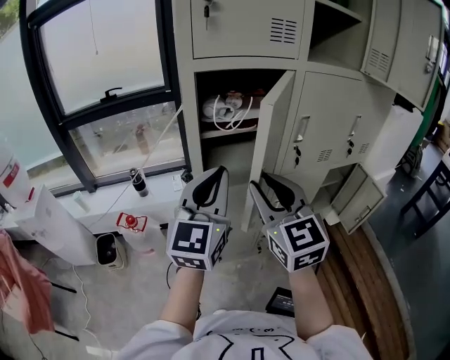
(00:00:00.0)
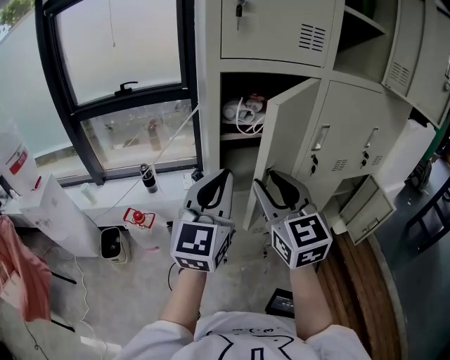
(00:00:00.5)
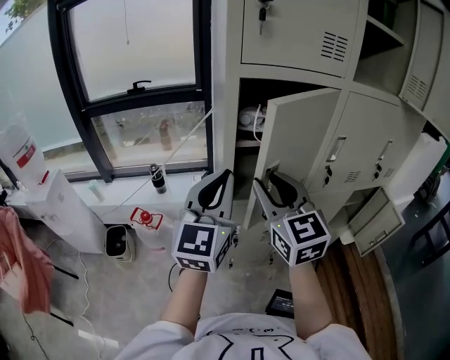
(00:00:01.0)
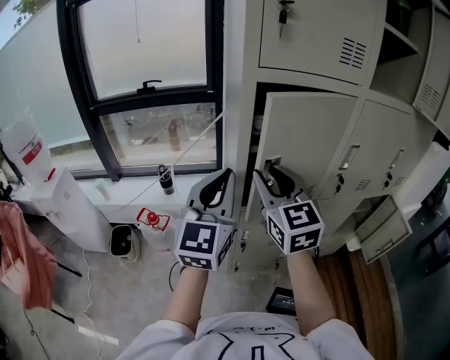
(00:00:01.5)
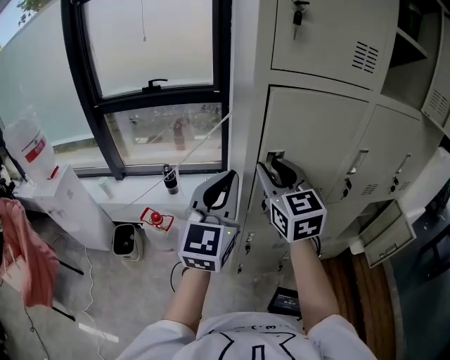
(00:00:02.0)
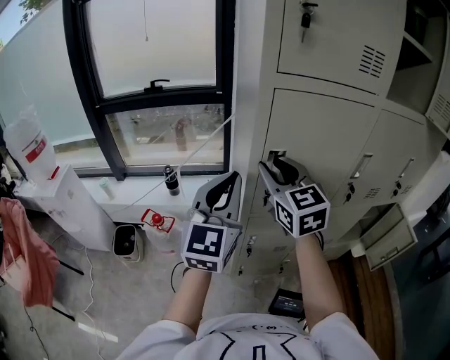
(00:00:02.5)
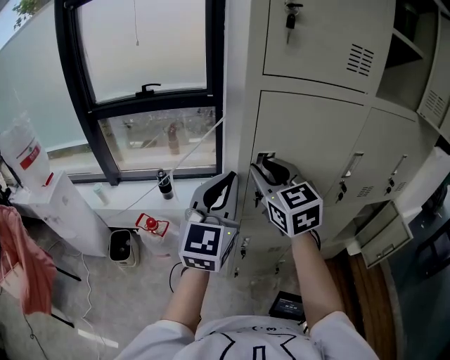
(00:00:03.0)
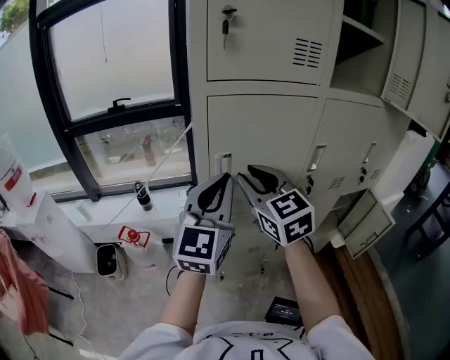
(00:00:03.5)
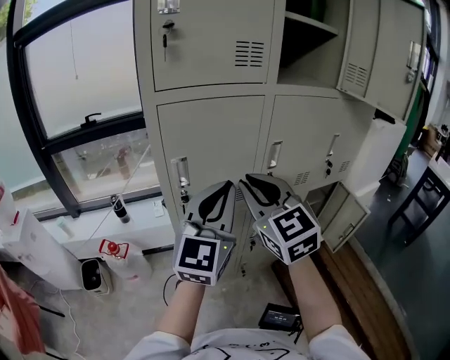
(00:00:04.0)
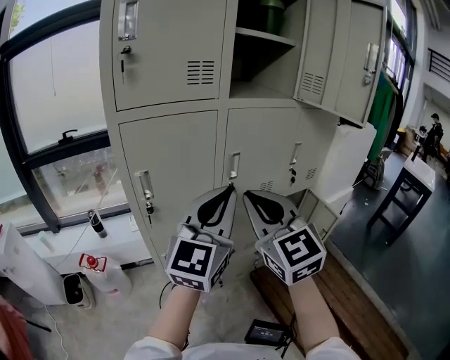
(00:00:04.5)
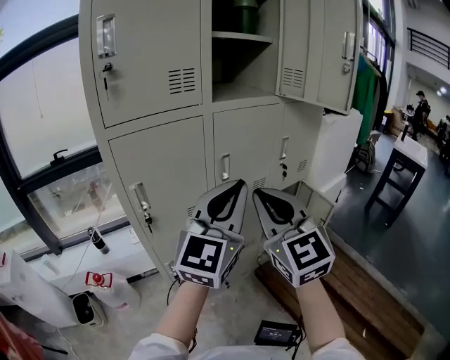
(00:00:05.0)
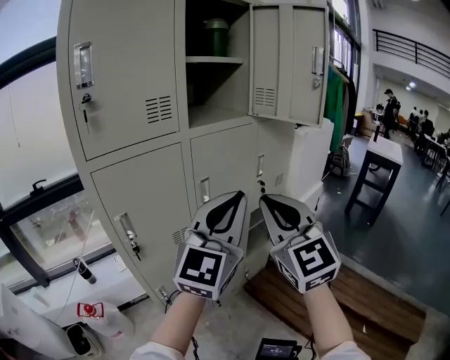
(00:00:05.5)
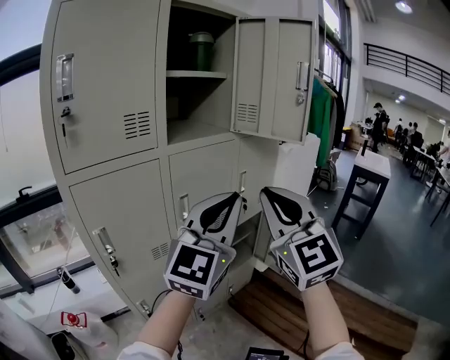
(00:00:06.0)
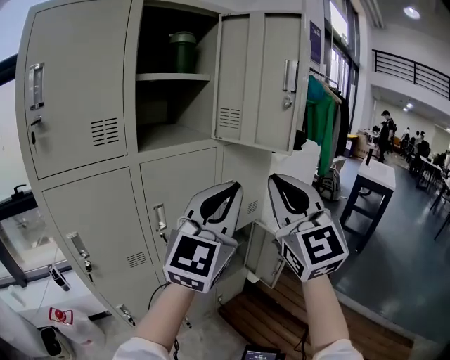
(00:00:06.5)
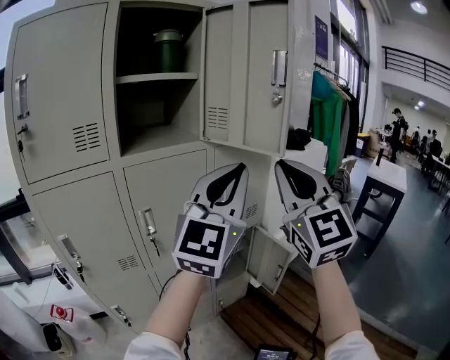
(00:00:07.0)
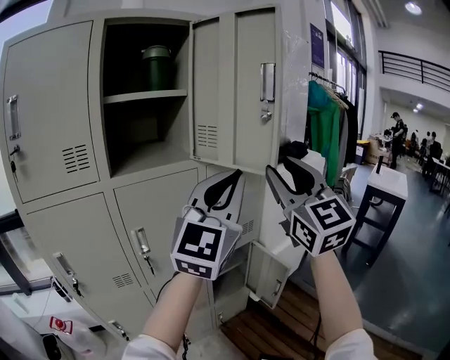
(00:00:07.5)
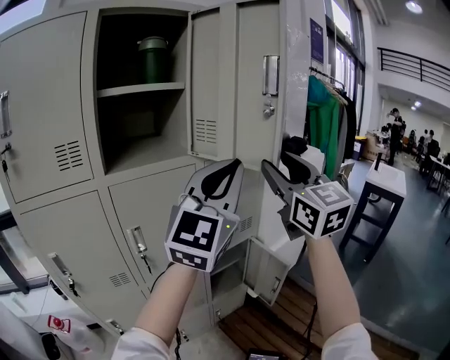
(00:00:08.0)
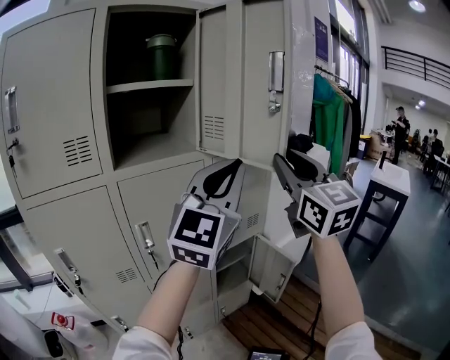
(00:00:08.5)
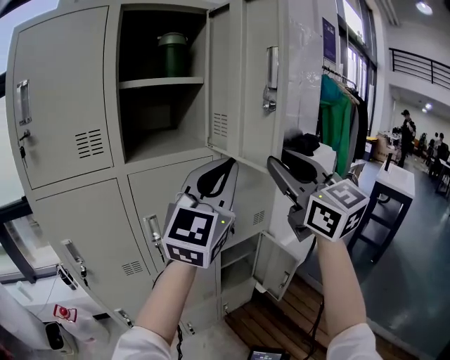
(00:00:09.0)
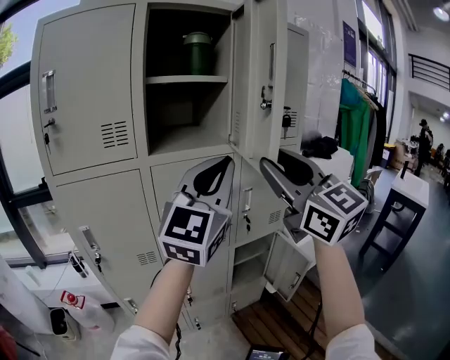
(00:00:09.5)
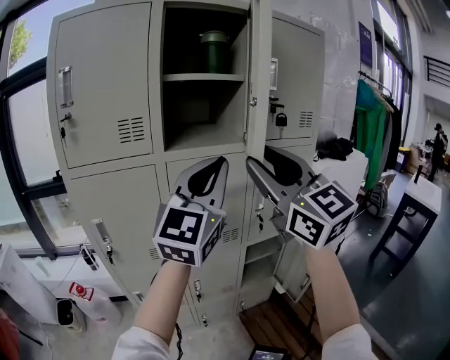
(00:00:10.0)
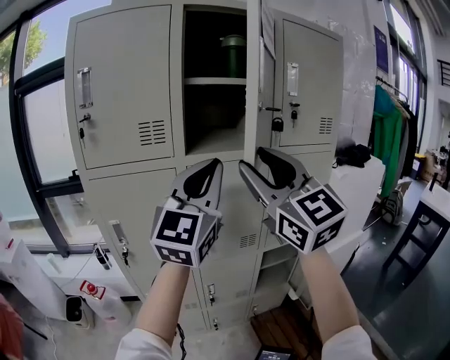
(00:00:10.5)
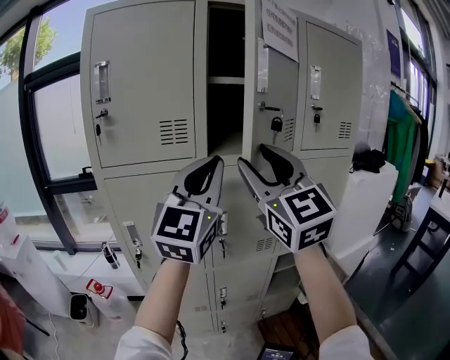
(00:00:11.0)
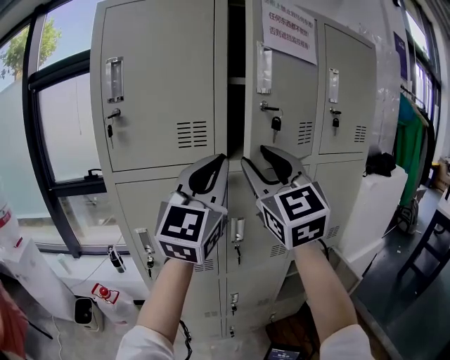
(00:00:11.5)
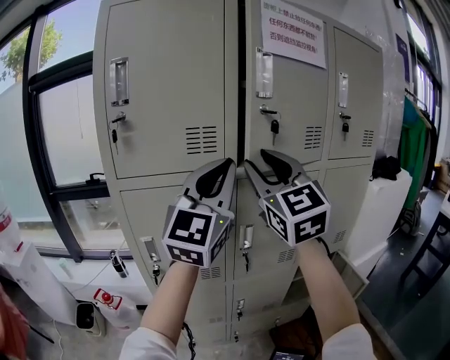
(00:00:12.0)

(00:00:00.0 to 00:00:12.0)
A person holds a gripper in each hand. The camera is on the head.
00:00:00.0 - 00:00:02.0: The right gripper moves forward and to the left, roughly 20 cm. The left gripper moves to the left and forward, approximately 10 cm.
00:00:02.0 - 00:00:04.0: The right gripper moves to the right and backward, about 20 cm. Meanwhile the left gripper goes some 20 cm to the right.
00:00:04.0 - 00:00:06.0: The left gripper changes place by about 25 cm, and changes its angle by some 30 degrees. Meanwhile the right gripper shifts by some 30 cm, and changes its angle by approximately 30 degrees.
00:00:06.0 - 00:00:08.0: The left gripper travels forward, to the right and upward by about 25 cm; the right gripper heads forward and to the right, covering approximately 30 cm, and opens up.
00:00:08.0 - 00:00:10.0: The right gripper is displaced to the left and backward by about 20 cm, and turns by approximately 30 degrees, while the left gripper shifts approximately 15 cm to the left.
00:00:10.0 - 00:00:12.0: Both grippers travel together to the left and forward, roughly 20 cm.

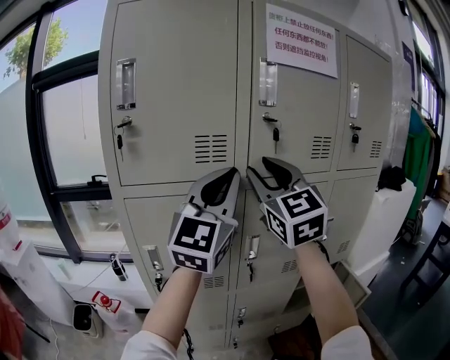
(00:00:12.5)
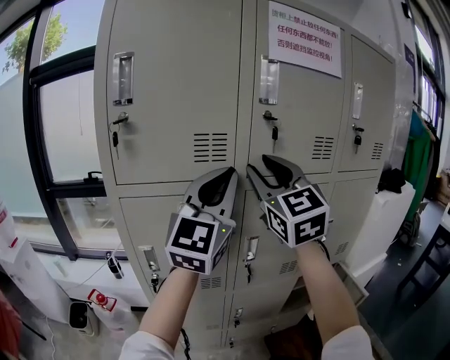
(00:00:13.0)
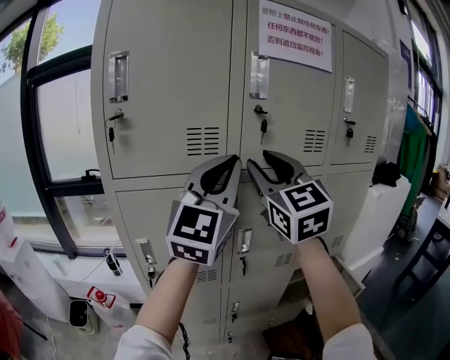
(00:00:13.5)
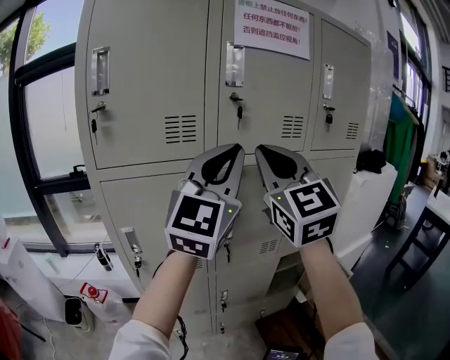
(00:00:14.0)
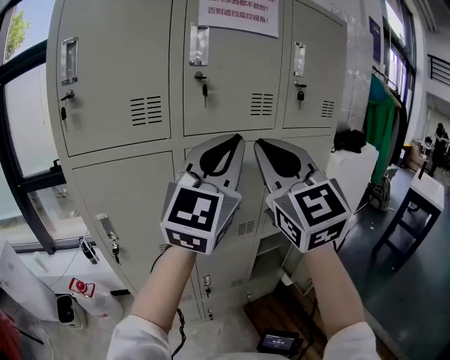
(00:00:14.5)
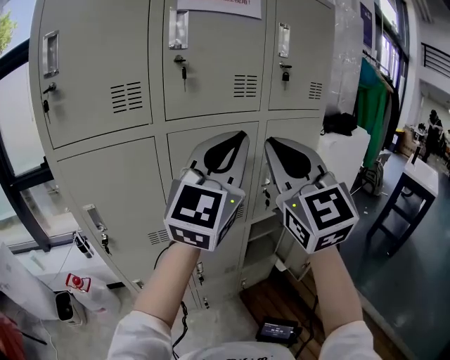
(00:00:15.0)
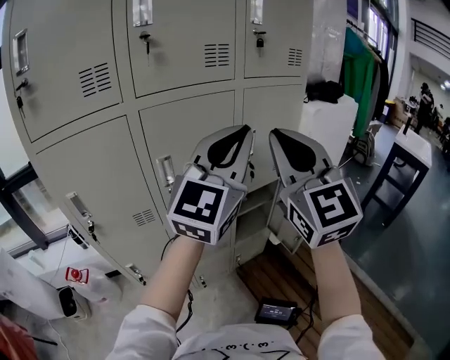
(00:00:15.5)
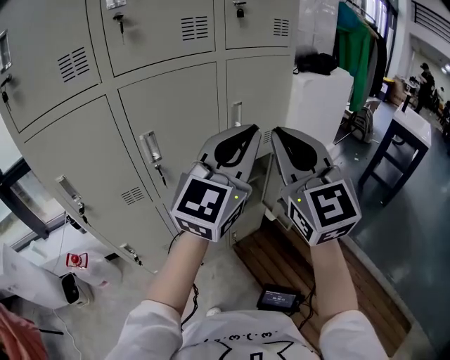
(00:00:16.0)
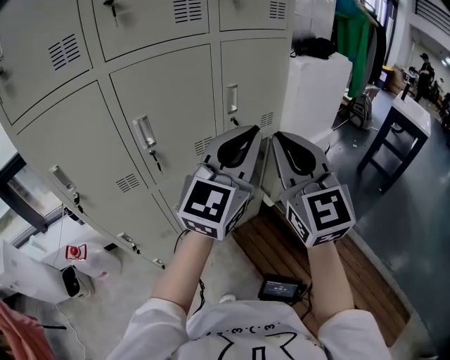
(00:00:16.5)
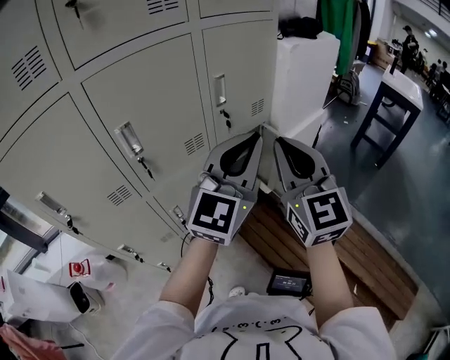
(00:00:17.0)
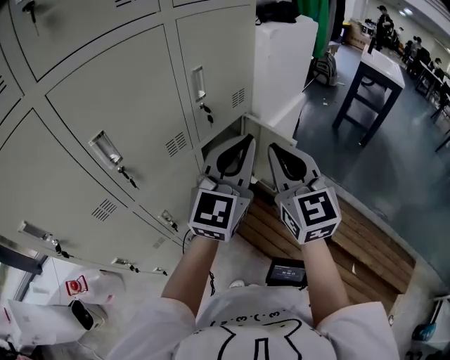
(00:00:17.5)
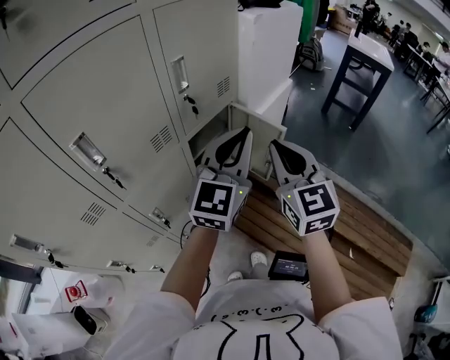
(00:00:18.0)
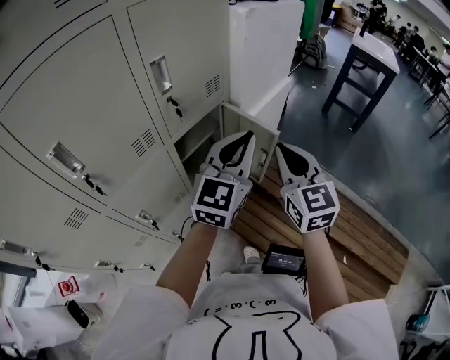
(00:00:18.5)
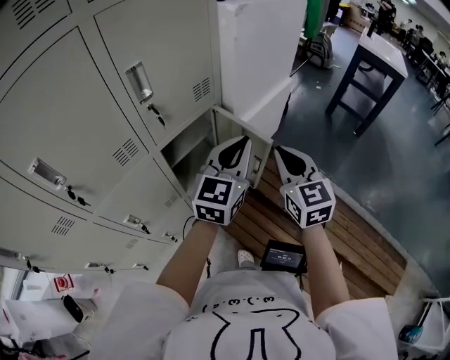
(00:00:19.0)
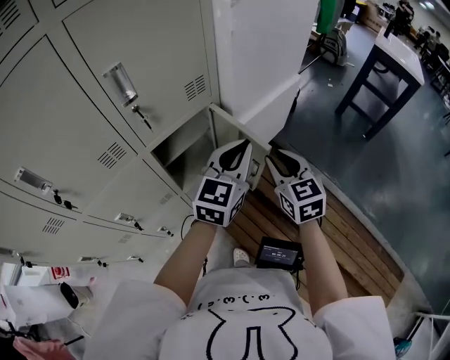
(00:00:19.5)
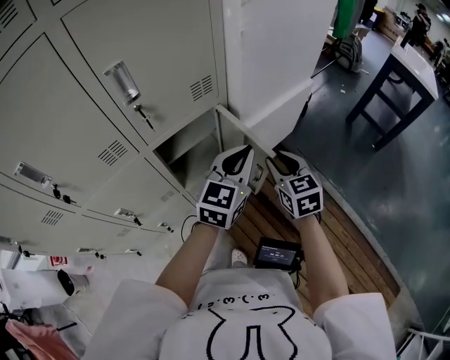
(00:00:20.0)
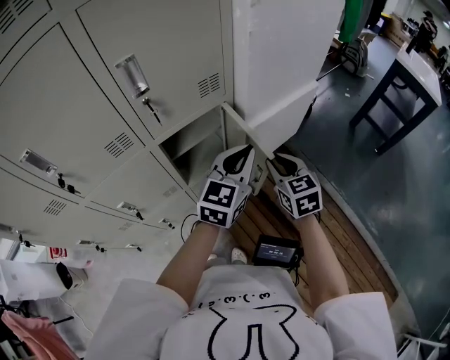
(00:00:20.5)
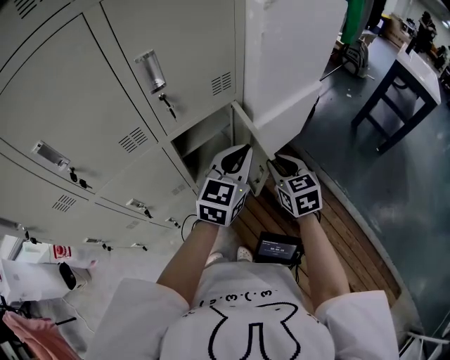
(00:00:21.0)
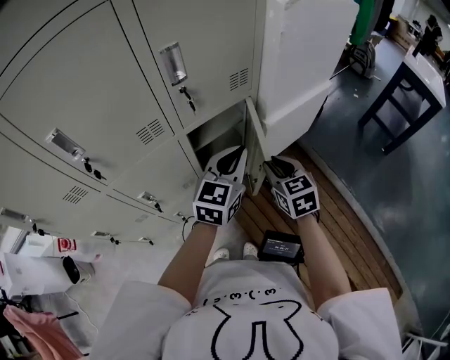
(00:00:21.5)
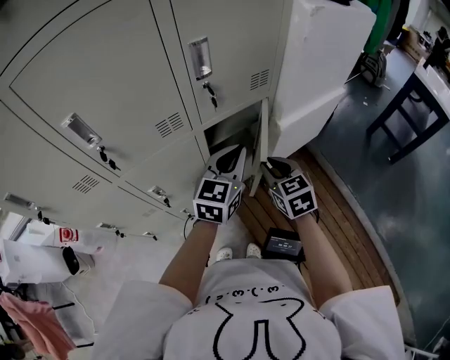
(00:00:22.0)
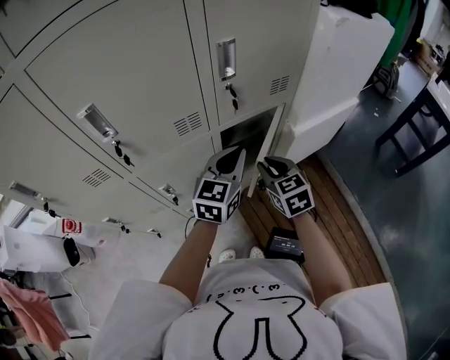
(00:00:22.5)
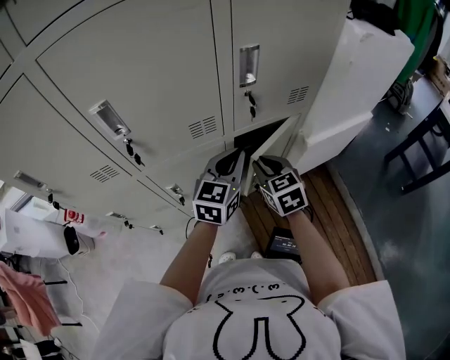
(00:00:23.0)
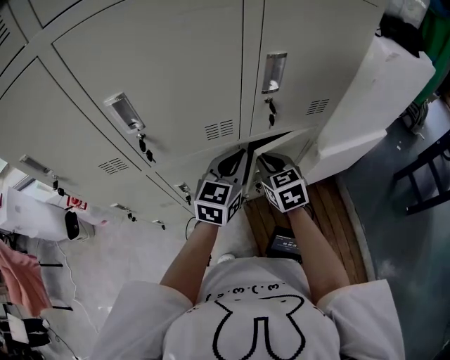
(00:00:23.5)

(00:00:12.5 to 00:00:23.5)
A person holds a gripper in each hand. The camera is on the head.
00:00:12.5 - 00:00:14.5: The grippers both shift to the right and backward by approximately 15 cm. The right gripper closes its fingers.
00:00:14.5 - 00:00:16.0: The two grippers go some 20 cm to the right and downward. The left gripper swivels some 20 degrees.
00:00:16.0 - 00:00:18.0: The left gripper shifts approximately 15 cm downward and forward, while the right gripper is displaced downward by approximately 20 cm, and swivels about 30 degrees.
00:00:18.0 - 00:00:20.0: The left gripper is displaced forward, downward and to the right by roughly 25 cm, and rotates about 20 degrees, while the right gripper is displaced downward, forward and to the right by roughly 30 cm, and turns by roughly 30 degrees.
00:00:20.0 - 00:00:21.5: The left gripper is displaced to the left by some 10 cm, while the right gripper heads to the left and backward, covering roughly 10 cm.
00:00:21.5 - 00:00:23.5: The left gripper heads to the left, covering some 15 cm. The right gripper travels to the left and forward by about 20 cm.

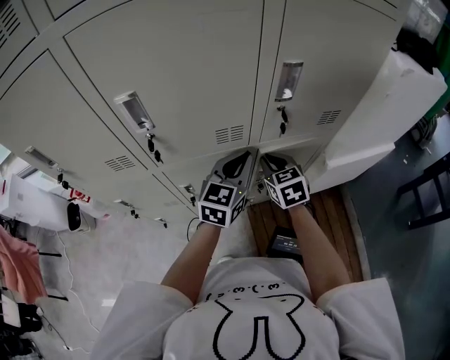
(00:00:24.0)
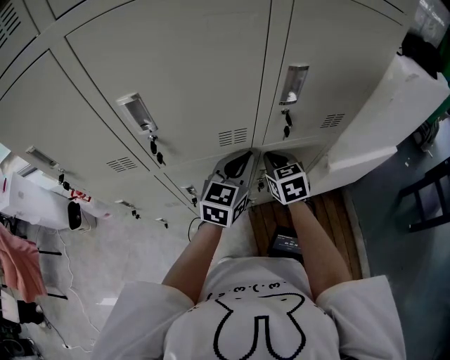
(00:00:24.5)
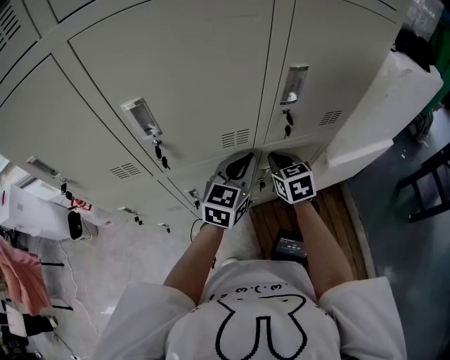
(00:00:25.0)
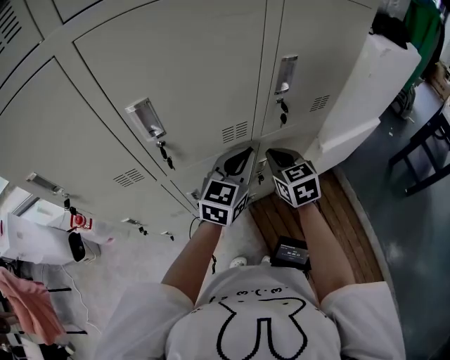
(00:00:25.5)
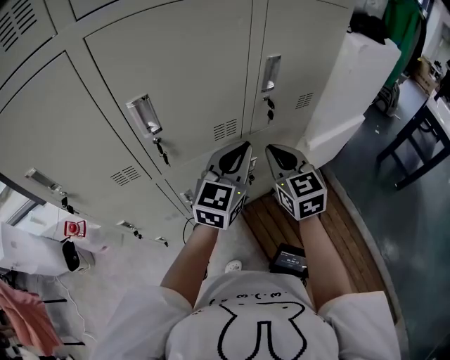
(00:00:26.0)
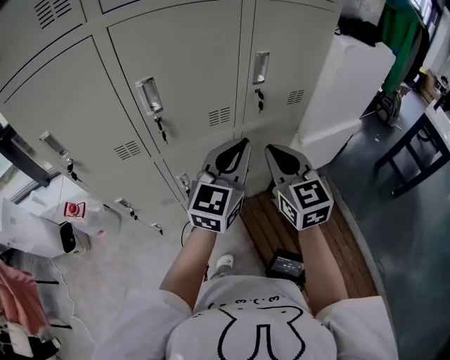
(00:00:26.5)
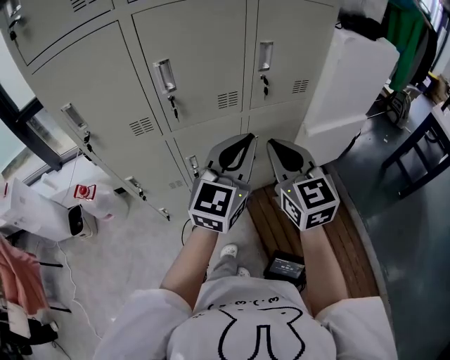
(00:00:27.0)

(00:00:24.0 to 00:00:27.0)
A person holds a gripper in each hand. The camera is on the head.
00:00:24.0 - 00:00:25.5: The right gripper changes place by about 5 cm.
00:00:25.5 - 00:00:27.0: Both grippers move backward and upward, approximately 25 cm. The right gripper rotates approximately 20 degrees.
